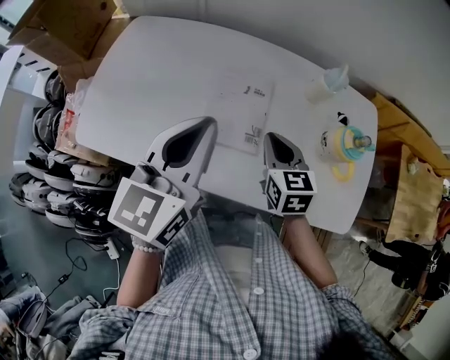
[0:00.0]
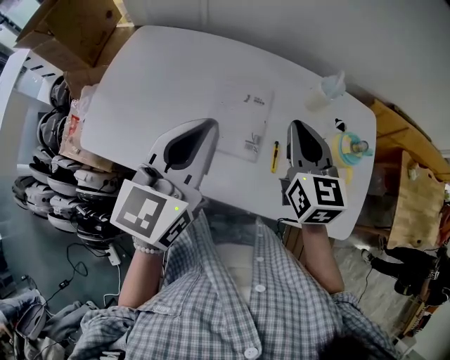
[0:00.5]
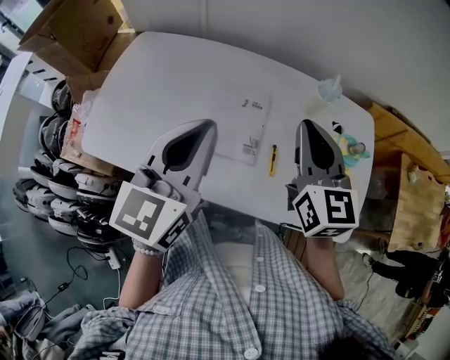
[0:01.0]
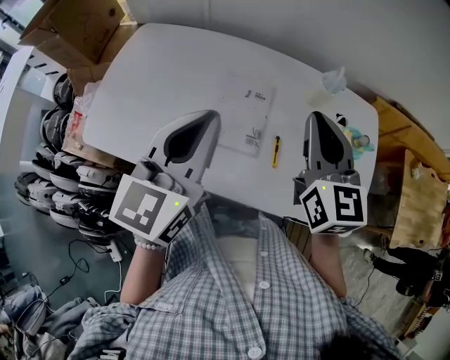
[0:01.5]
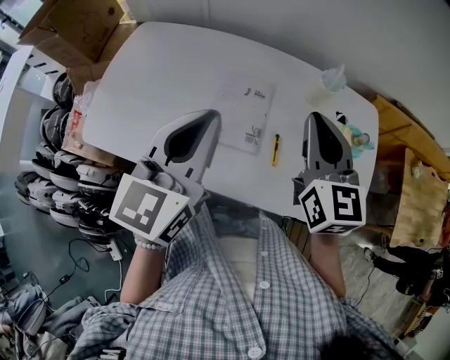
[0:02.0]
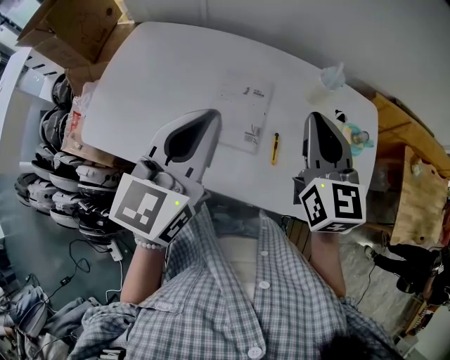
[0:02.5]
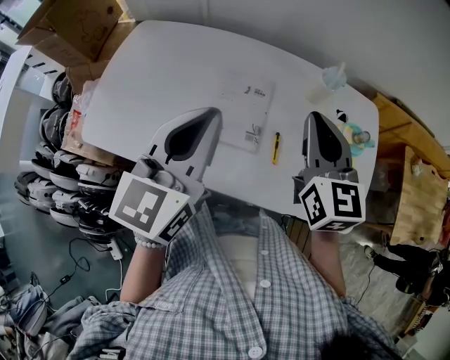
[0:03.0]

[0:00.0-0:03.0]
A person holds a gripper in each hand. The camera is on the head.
0:00.0 to 0:01.5: The right gripper shifts about 20 cm upward, and turns by approximately 20 degrees.
0:01.5 to 0:03.0: The grippers stay close to where they were, moving slightly.

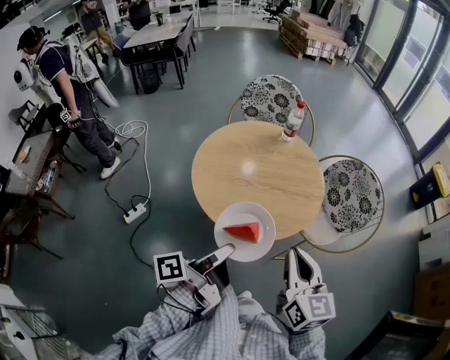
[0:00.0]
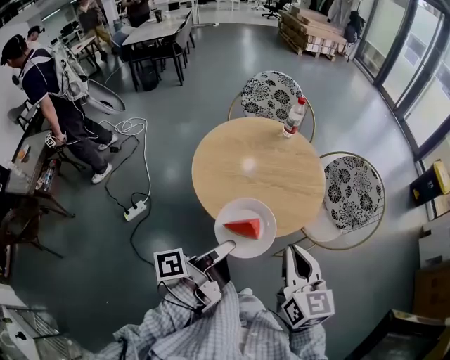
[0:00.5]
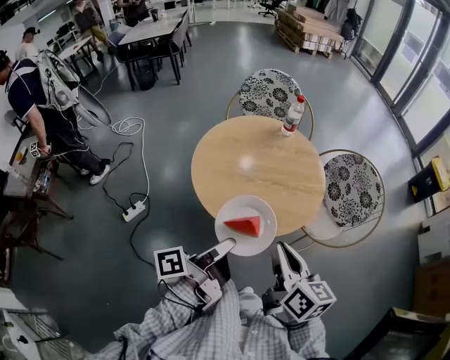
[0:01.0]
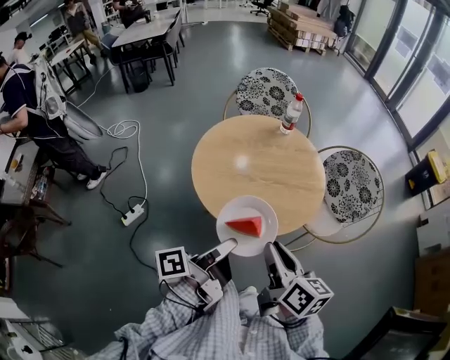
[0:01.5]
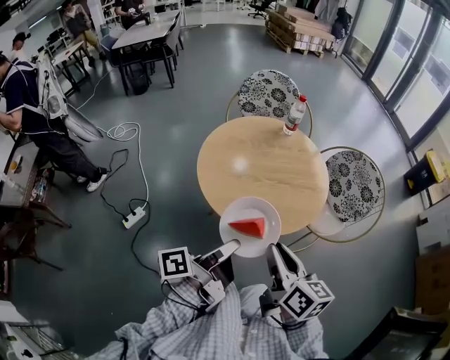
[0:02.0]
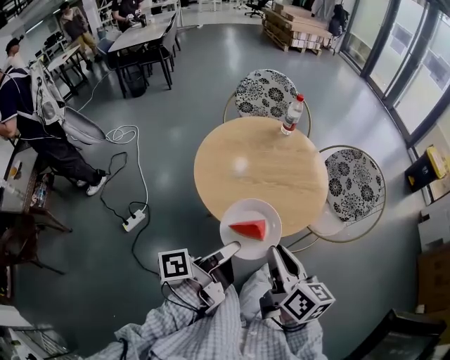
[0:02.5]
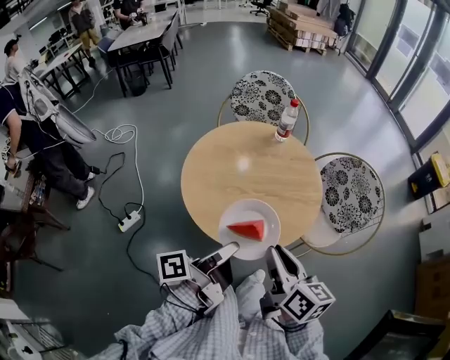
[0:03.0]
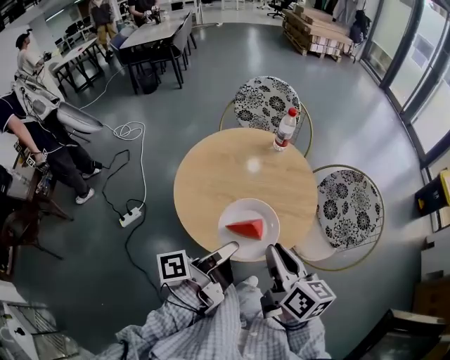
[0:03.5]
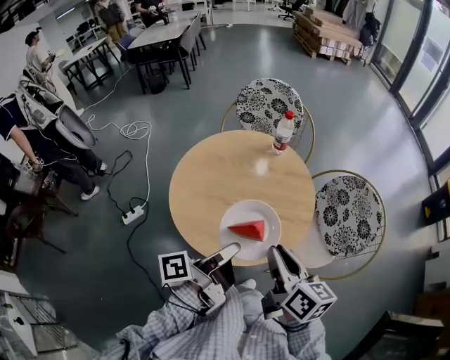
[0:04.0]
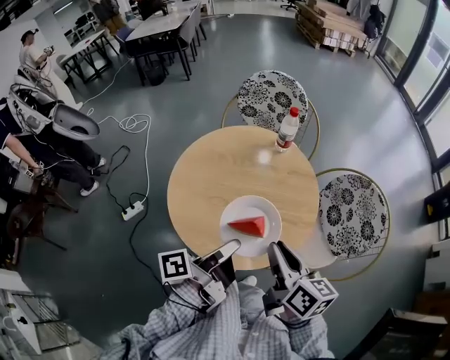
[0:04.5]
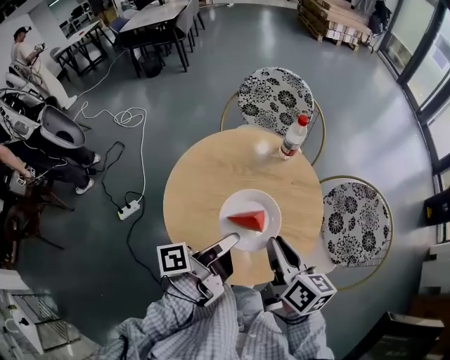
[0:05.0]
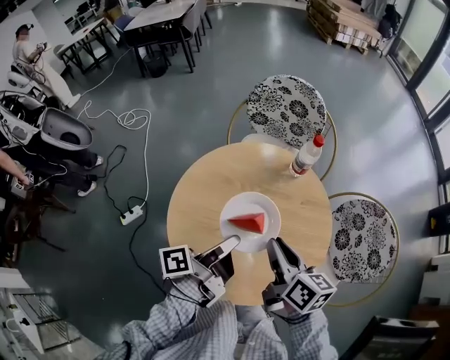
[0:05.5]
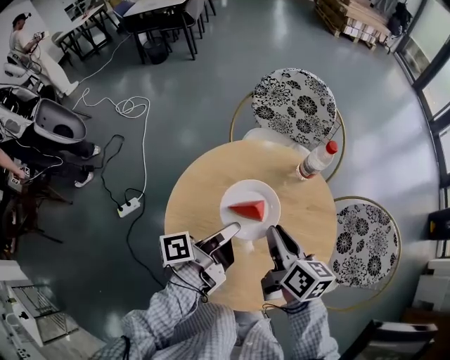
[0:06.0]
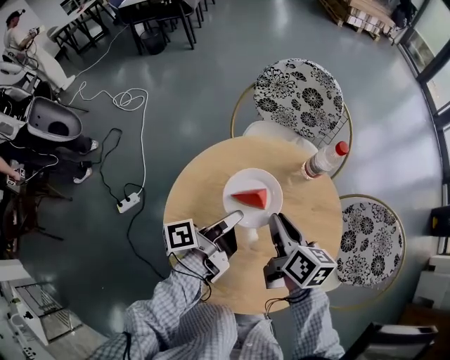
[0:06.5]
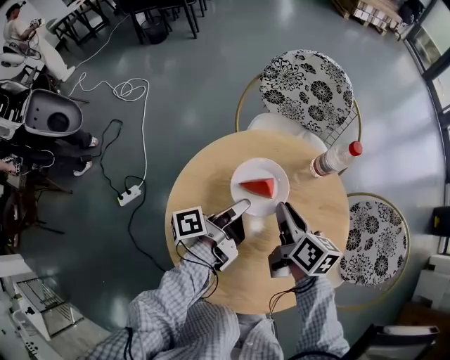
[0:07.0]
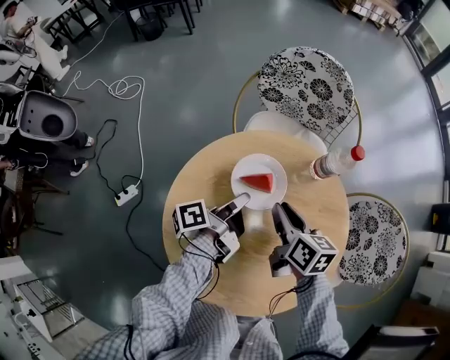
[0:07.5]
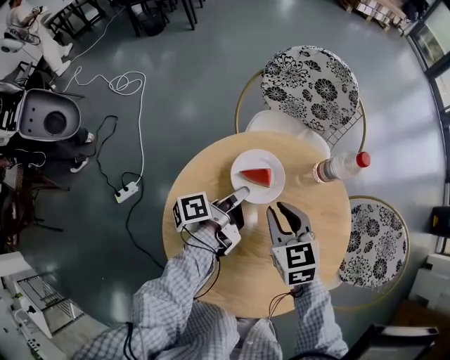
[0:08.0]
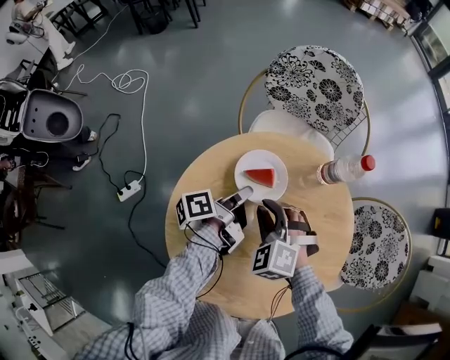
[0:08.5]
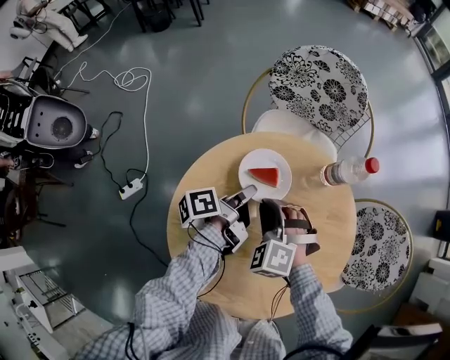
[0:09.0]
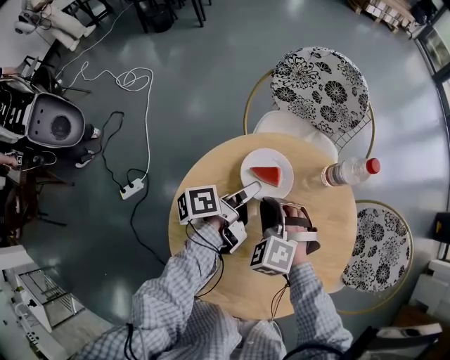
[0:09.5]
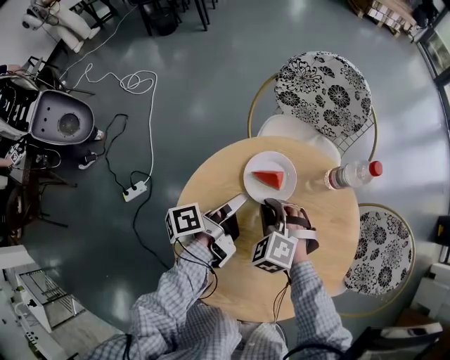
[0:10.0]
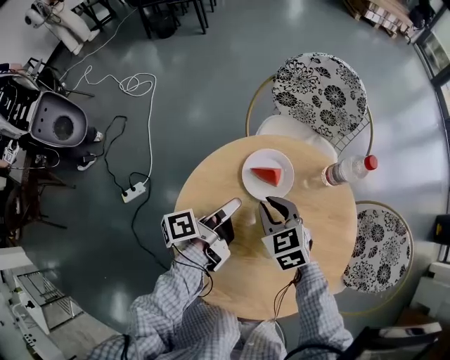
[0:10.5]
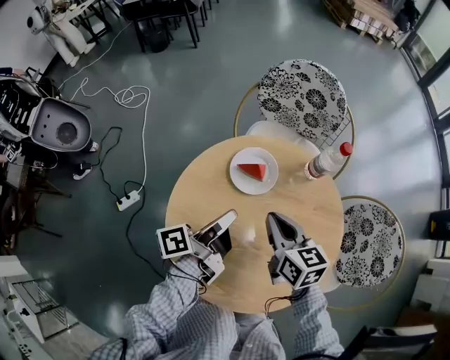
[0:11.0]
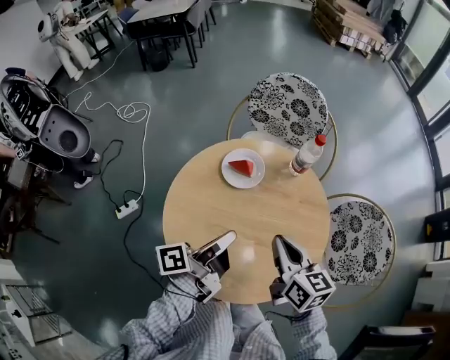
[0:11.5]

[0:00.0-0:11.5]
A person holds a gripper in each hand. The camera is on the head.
0:00.0 to 0:02.0: The right gripper ends up approximately 10 cm from where it was, and rotates roughly 30 degrees.
0:02.0 to 0:04.0: The right gripper changes place by approximately 20 cm.
0:04.0 to 0:06.0: The right gripper shifts by roughly 25 cm.
0:06.0 to 0:07.5: The right gripper goes roughly 10 cm downward.
0:07.5 to 0:09.5: The right gripper changes place by roughly 10 cm, and rolls counterclockwise, seen from behind, by about 90 degrees.
0:09.5 to 0:11.5: The right gripper shifts by approximately 20 cm, and rotates around the line of its fingers by roughly 80 degrees, clockwise from behind.

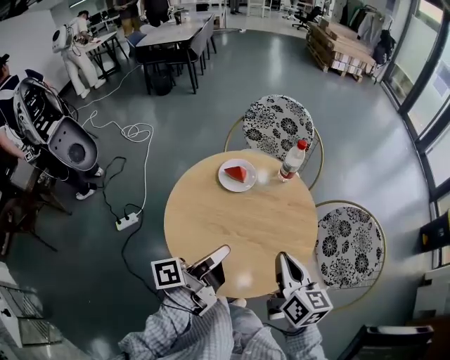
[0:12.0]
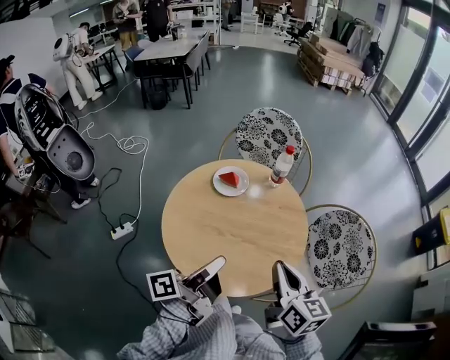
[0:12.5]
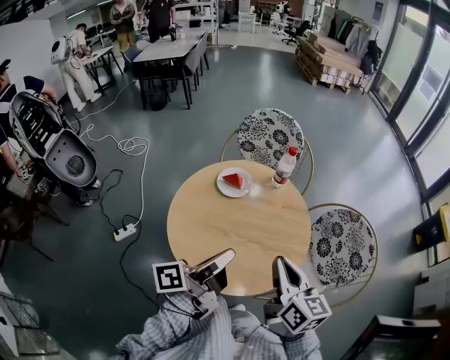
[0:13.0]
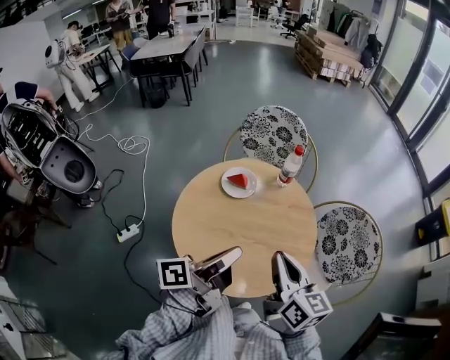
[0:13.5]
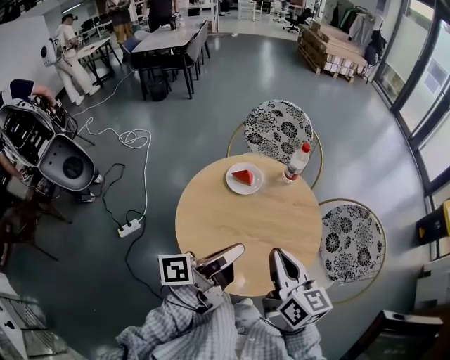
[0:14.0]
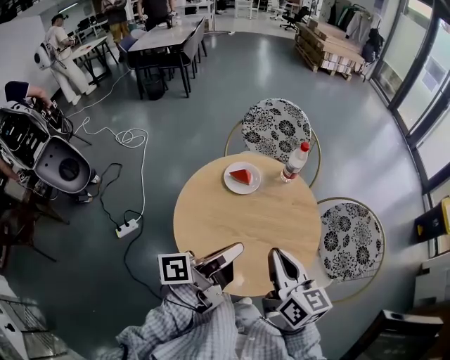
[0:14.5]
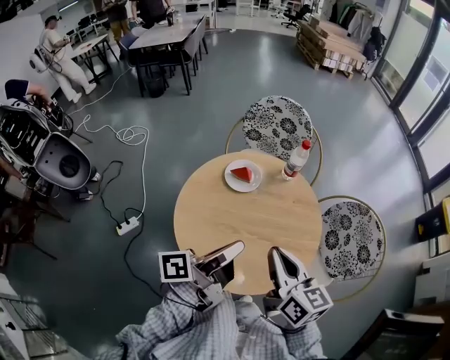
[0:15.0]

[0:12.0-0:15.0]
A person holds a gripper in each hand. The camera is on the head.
0:12.0 to 0:13.5: The right gripper moves upward, roughly 5 cm.

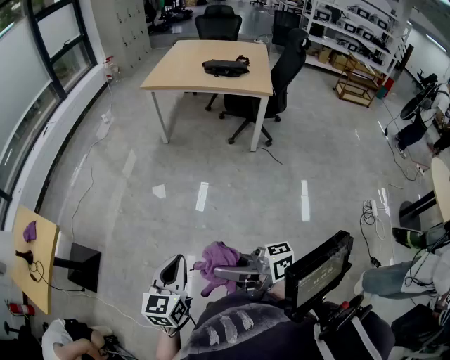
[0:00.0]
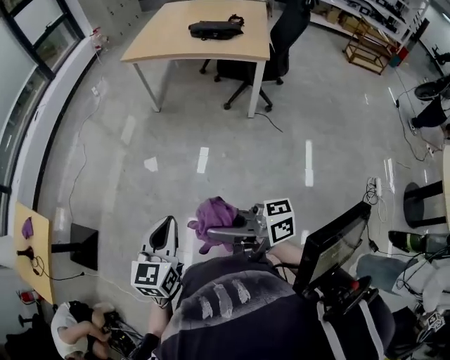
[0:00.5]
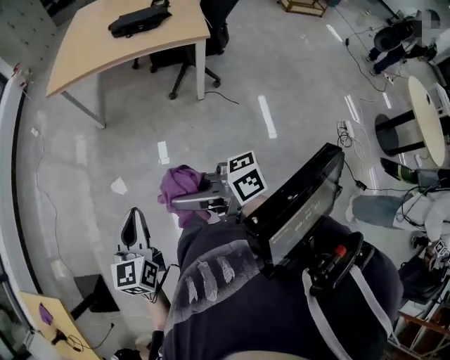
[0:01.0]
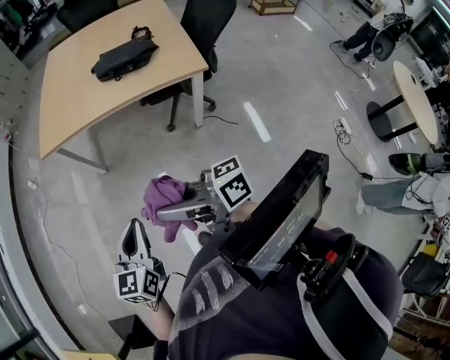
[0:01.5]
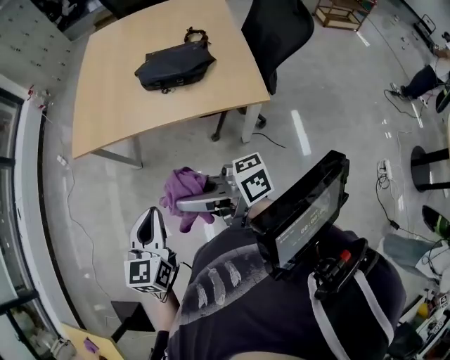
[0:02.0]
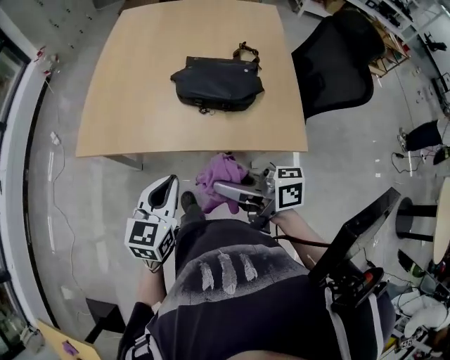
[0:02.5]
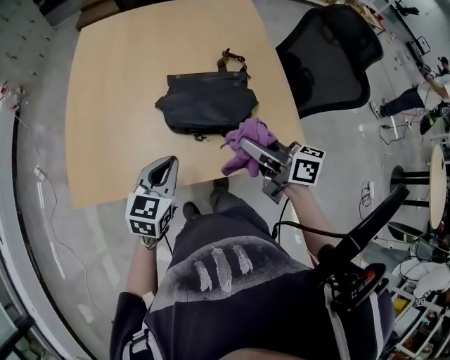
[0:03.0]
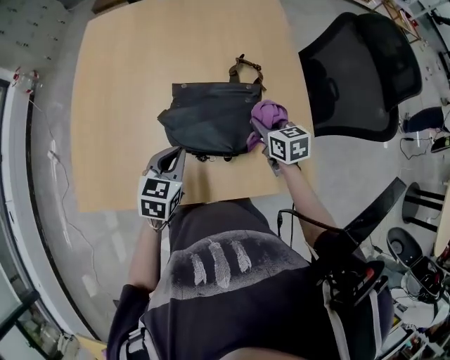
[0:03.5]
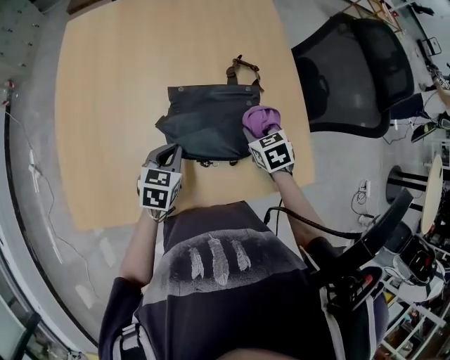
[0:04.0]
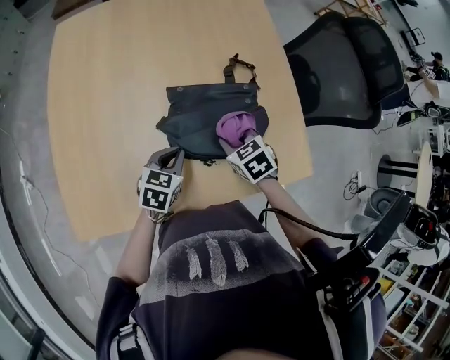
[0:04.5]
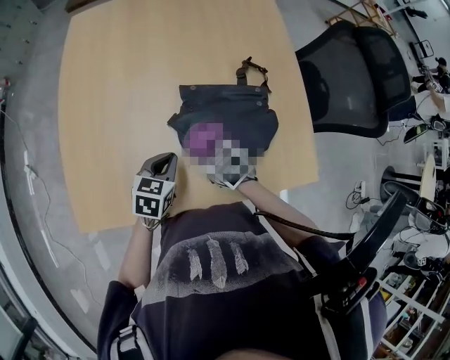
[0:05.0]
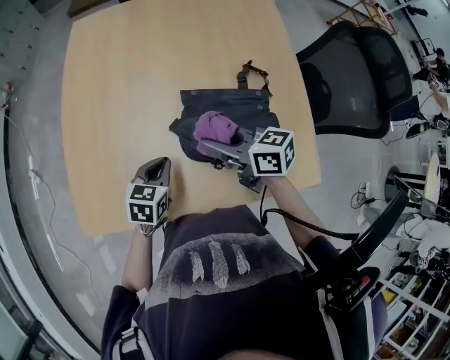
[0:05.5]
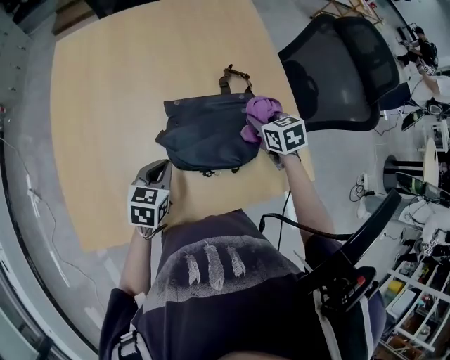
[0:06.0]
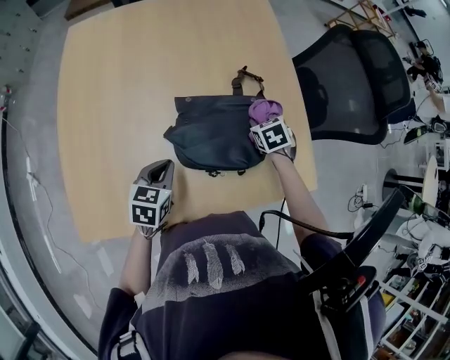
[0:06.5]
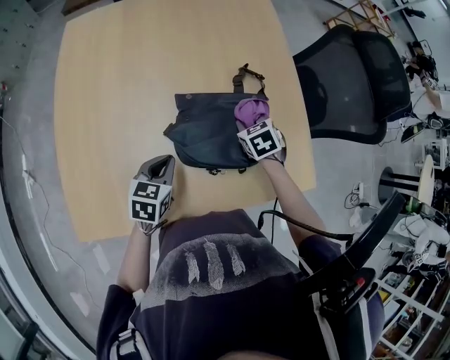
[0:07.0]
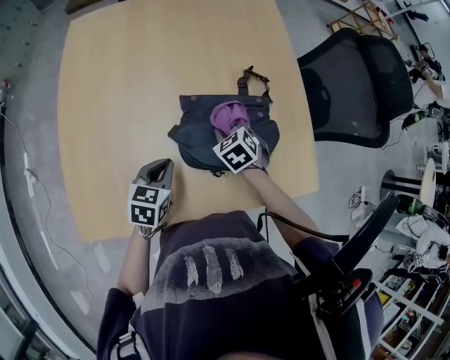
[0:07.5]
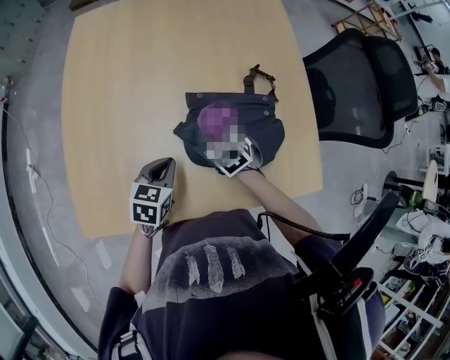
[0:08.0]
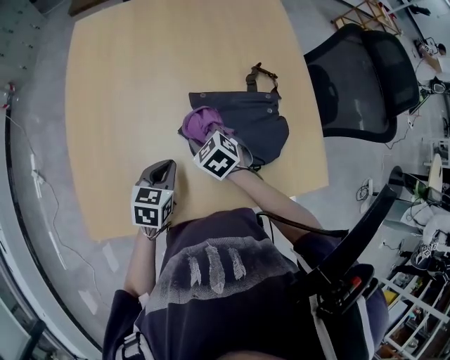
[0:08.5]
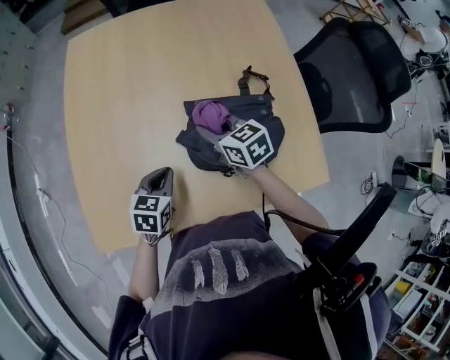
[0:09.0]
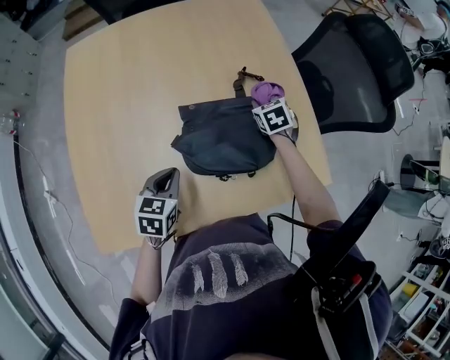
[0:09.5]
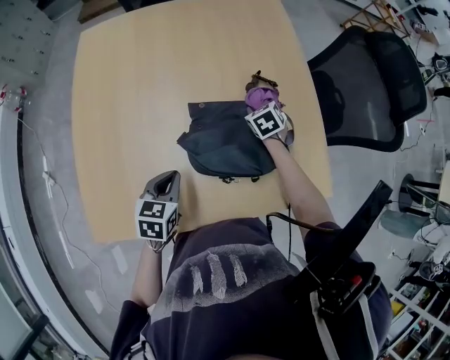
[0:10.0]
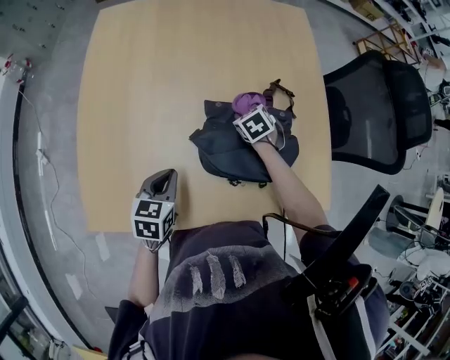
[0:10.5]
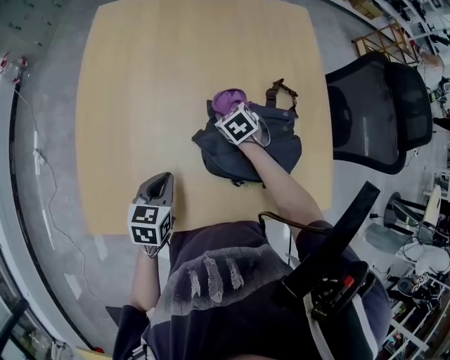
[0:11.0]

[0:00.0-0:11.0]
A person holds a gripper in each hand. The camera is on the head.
0:00.0 to 0:02.0: The two grippers travel together, forward and to the right, some 80 cm.
0:02.0 to 0:03.5: The two grippers travel together, roughly 50 cm. The left gripper turns by approximately 30 degrees; the right gripper tilts its fingers some 60 degrees downward.
0:03.5 to 0:05.5: The left gripper travels to the left by about 10 cm; the right gripper is displaced to the left and upward by about 25 cm, and turns by roughly 30 degrees.
0:05.5 to 0:07.5: The right gripper heads downward, covering roughly 15 cm, and tilts its fingers about 40 degrees downward.
0:07.5 to 0:09.0: The right gripper shifts about 10 cm to the left and upward, and turns by approximately 40 degrees.
0:09.0 to 0:11.0: The right gripper is displaced downward and forward by some 15 cm, reaches approximately 20 cm to the right, then returns, and turns by approximately 30 degrees.
